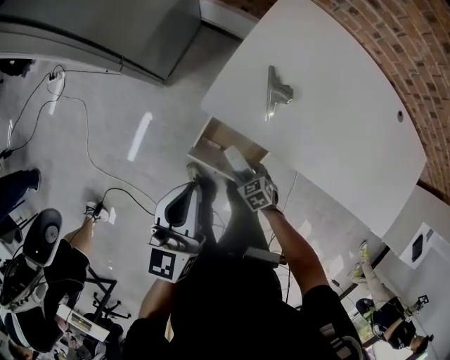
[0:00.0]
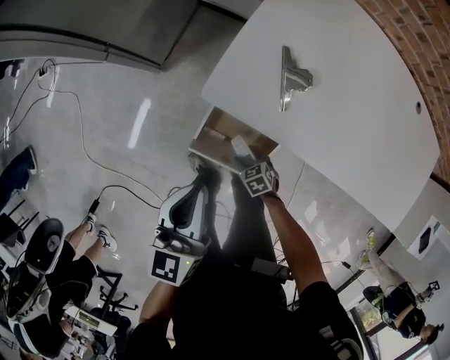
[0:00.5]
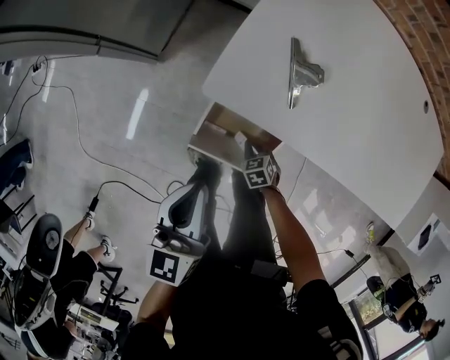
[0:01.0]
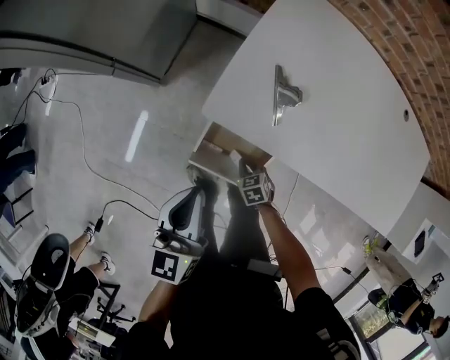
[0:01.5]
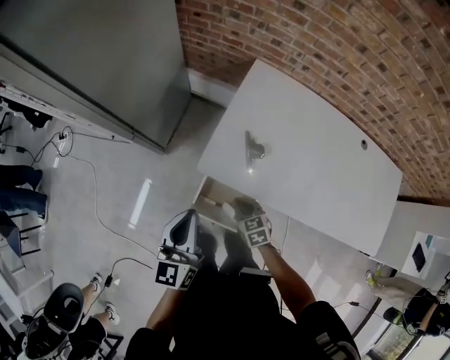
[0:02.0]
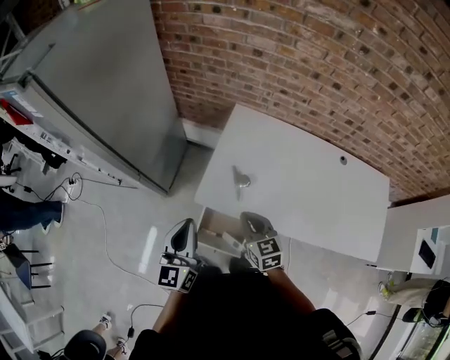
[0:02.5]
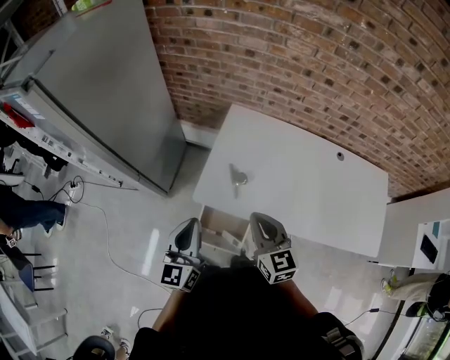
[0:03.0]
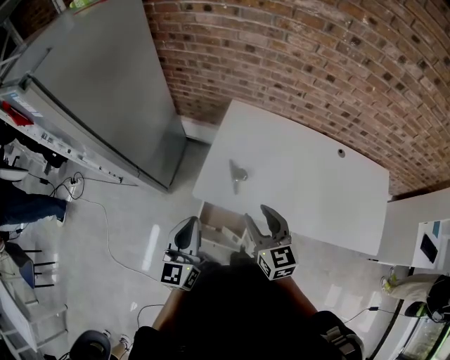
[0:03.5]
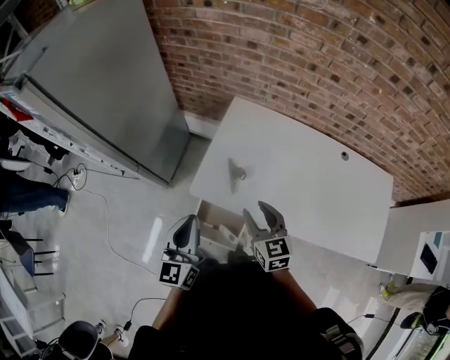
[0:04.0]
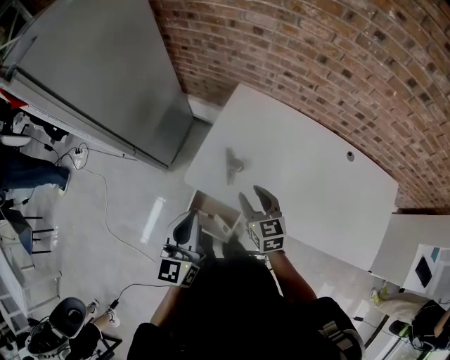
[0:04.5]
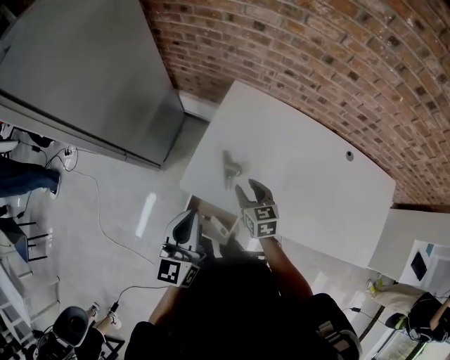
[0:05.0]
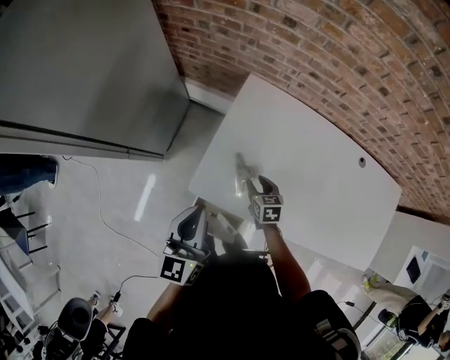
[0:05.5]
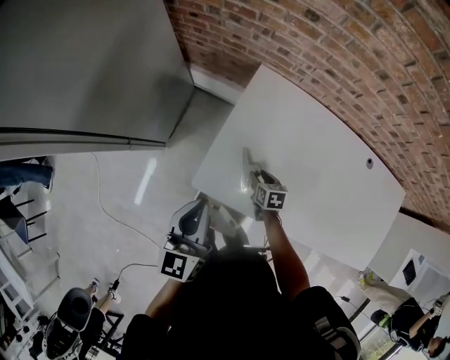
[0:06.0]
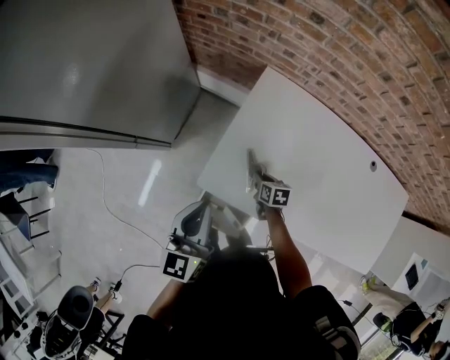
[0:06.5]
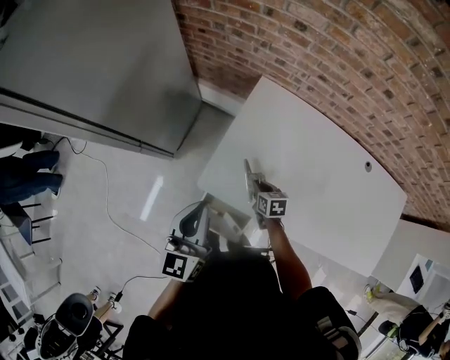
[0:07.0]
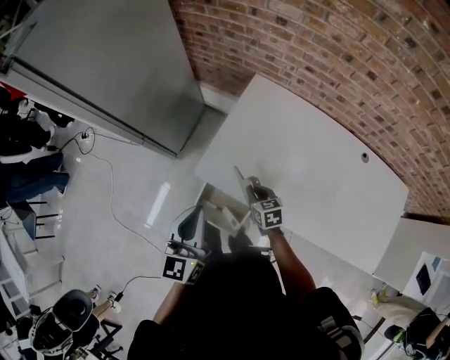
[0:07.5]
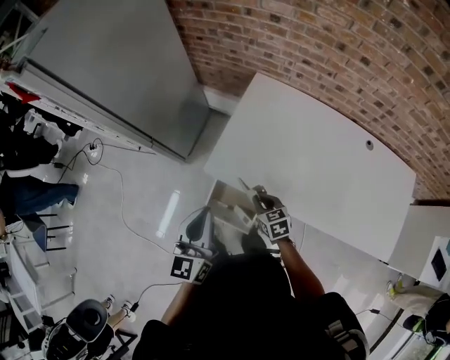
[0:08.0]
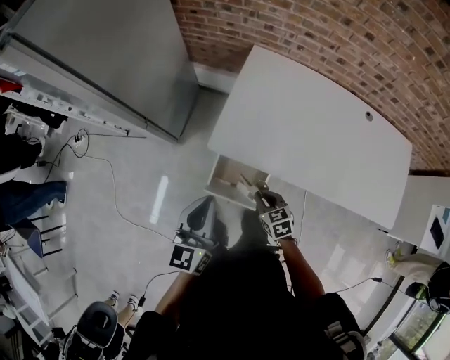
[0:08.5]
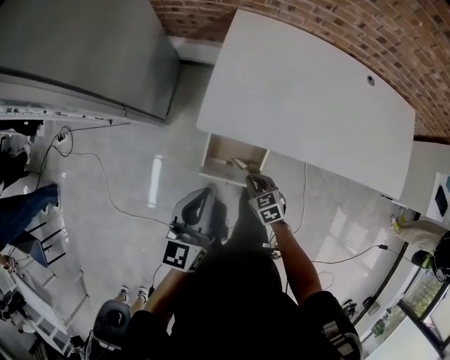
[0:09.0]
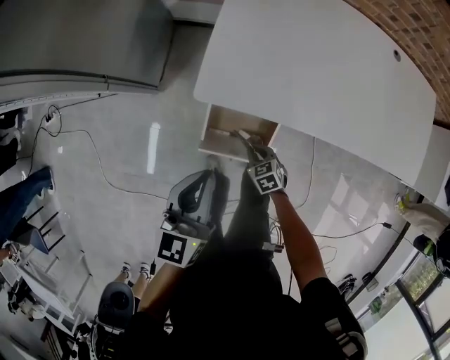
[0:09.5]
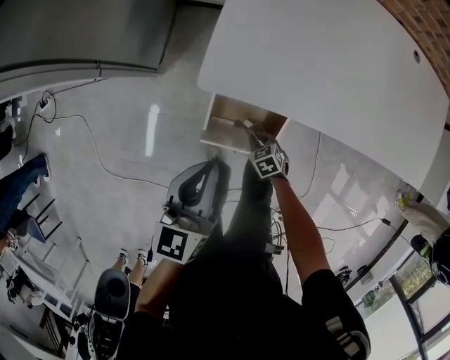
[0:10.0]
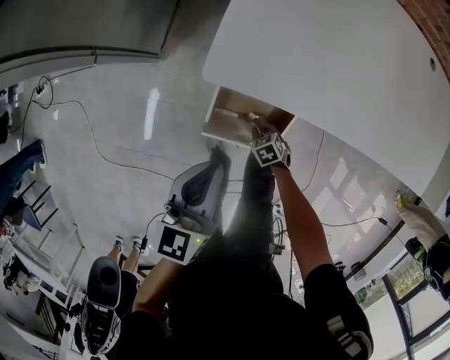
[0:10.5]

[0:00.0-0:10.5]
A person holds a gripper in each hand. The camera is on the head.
0:00.0 to 0:02.0: The right gripper shifts roughly 20 cm upward and forward, changes its angle by roughly 20 degrees, and closes, while the left gripper travels downward and back again, some 10 cm each way.
0:02.0 to 0:04.0: The left gripper shifts roughly 10 cm upward and to the right; the right gripper moves upward, about 25 cm, swivels some 30 degrees, and opens its fingers.
0:04.0 to 0:06.5: The right gripper moves downward and forward, approximately 35 cm, tilts its fingers about 30 degrees downward, and closes. Meanwhile the left gripper goes some 15 cm forward and downward.
0:06.5 to 0:08.5: The right gripper moves backward, upward and to the left, some 30 cm, and turns by some 30 degrees; the left gripper goes approximately 15 cm backward.
0:08.5 to 0:10.5: The right gripper moves downward, some 35 cm, and swivels some 30 degrees, while the left gripper is displaced downward by about 20 cm.

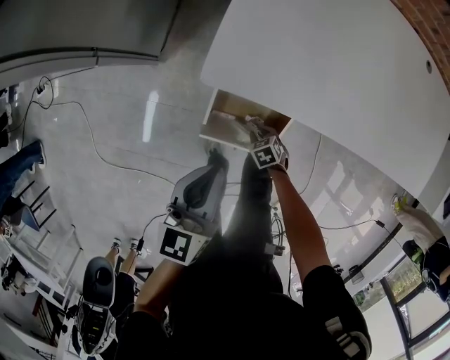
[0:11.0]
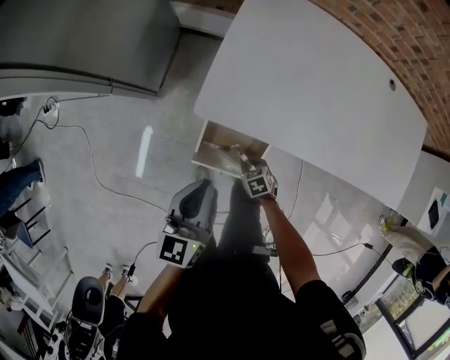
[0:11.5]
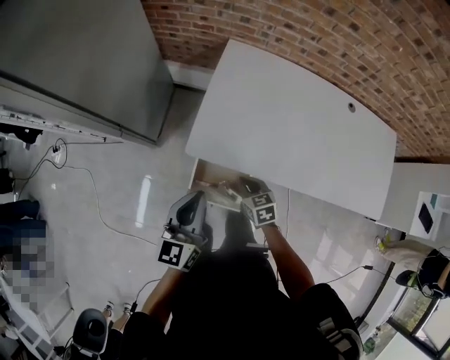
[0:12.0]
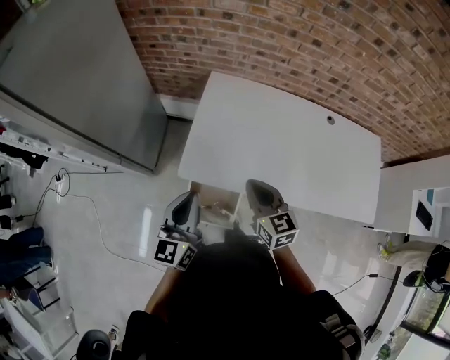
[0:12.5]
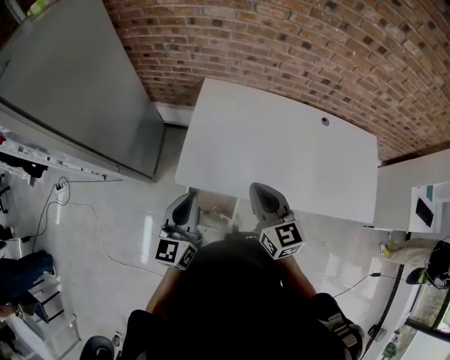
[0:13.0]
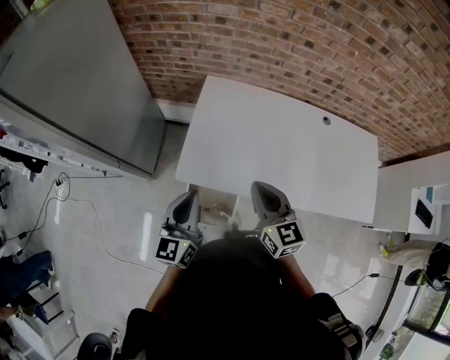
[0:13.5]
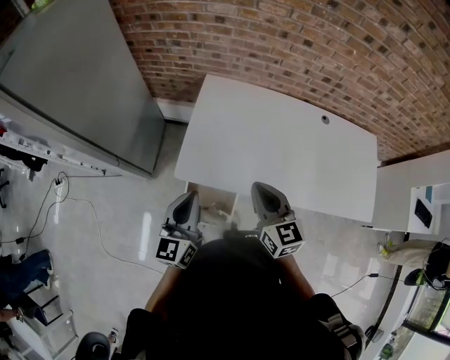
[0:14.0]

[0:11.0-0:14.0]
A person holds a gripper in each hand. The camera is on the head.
0:11.0 to 0:12.5: The left gripper goes approximately 25 cm upward, and swivels roughly 20 degrees, while the right gripper is displaced upward by some 50 cm, angles its fingers upward, by approximately 50 degrees, and closes up.
0:12.5 to 0:14.0: The right gripper moves upward, some 5 cm.

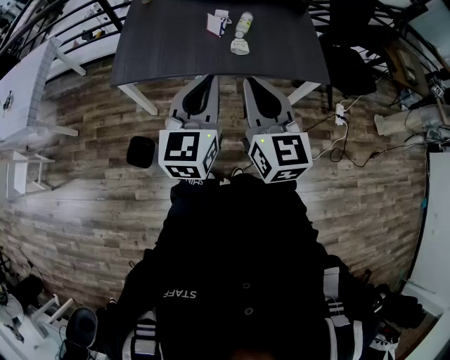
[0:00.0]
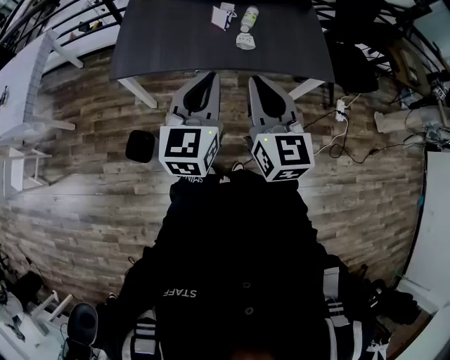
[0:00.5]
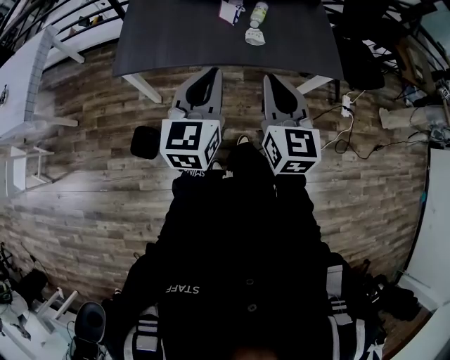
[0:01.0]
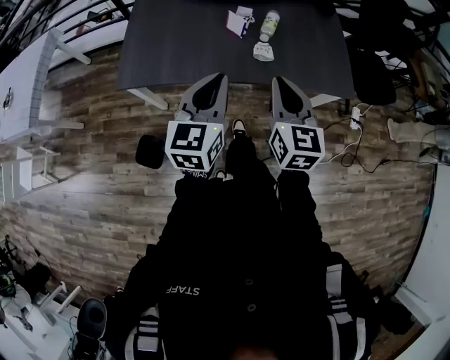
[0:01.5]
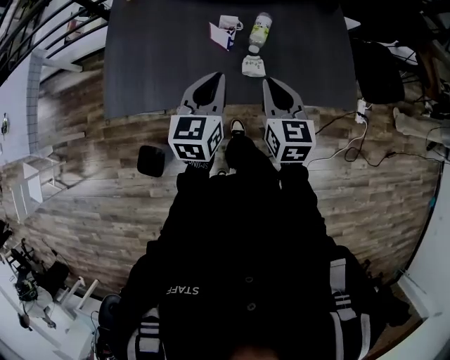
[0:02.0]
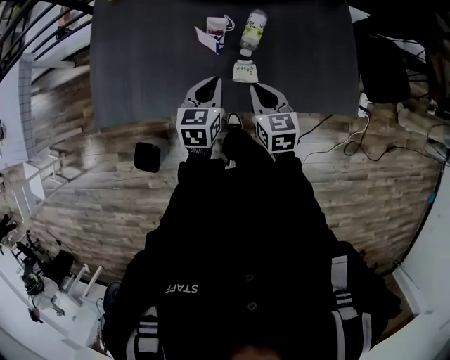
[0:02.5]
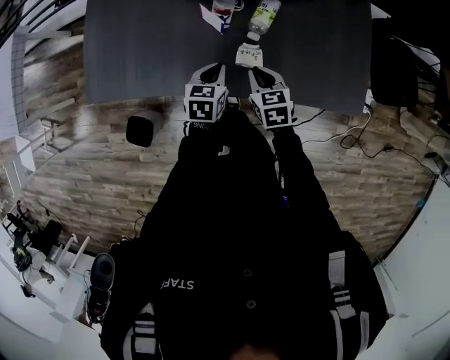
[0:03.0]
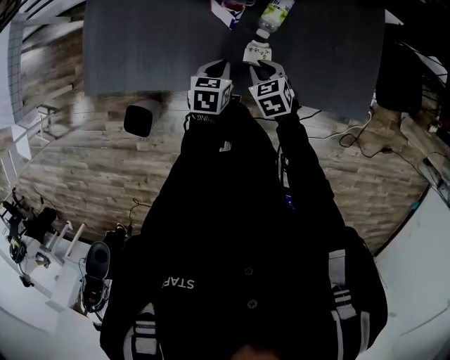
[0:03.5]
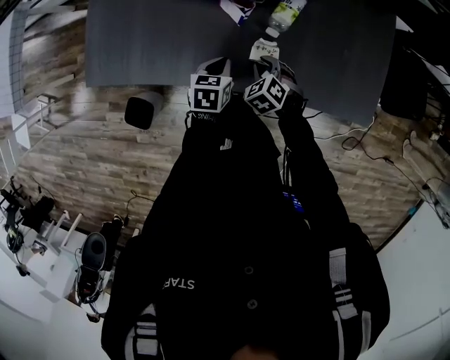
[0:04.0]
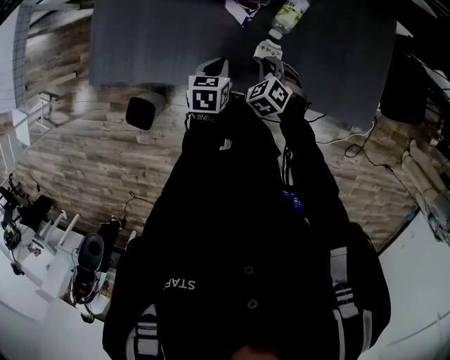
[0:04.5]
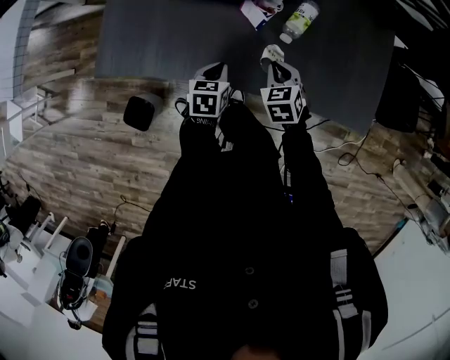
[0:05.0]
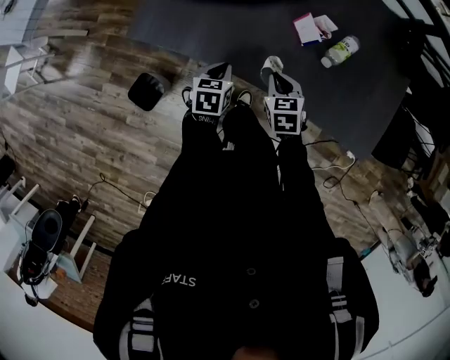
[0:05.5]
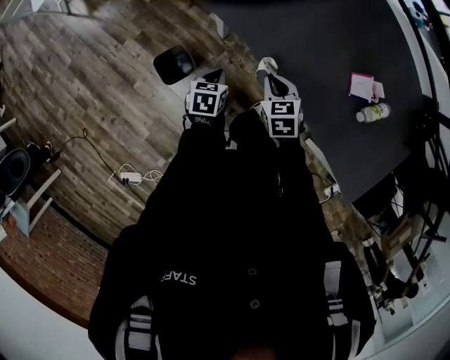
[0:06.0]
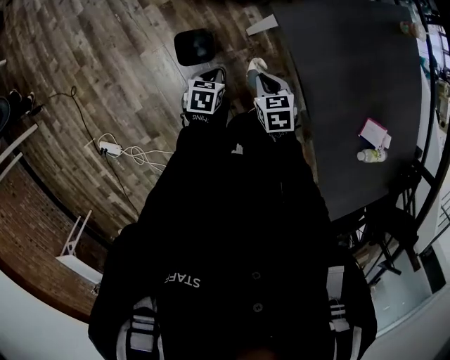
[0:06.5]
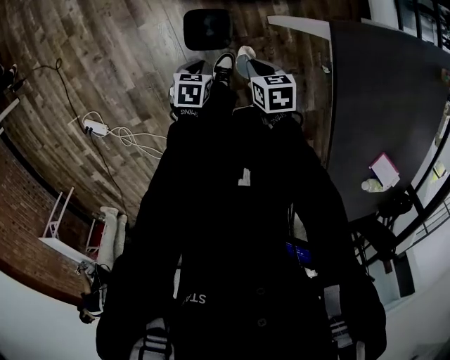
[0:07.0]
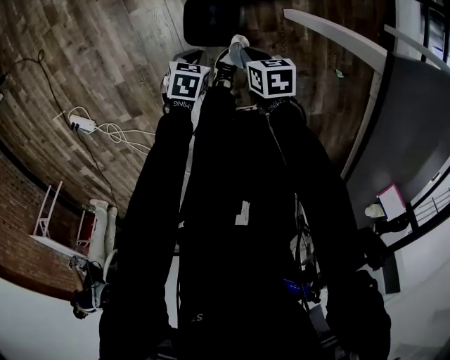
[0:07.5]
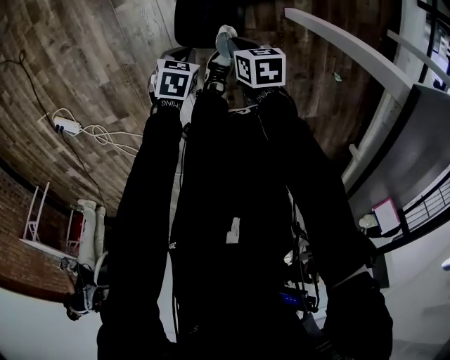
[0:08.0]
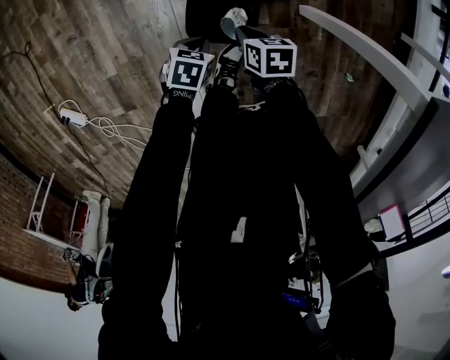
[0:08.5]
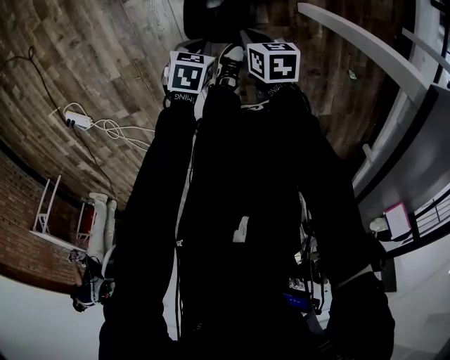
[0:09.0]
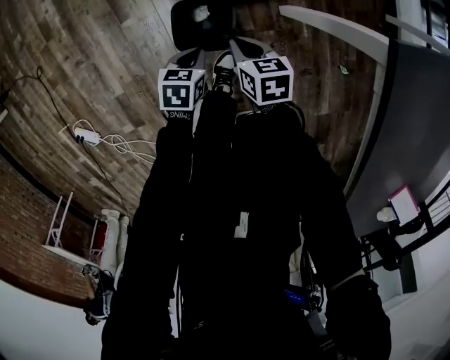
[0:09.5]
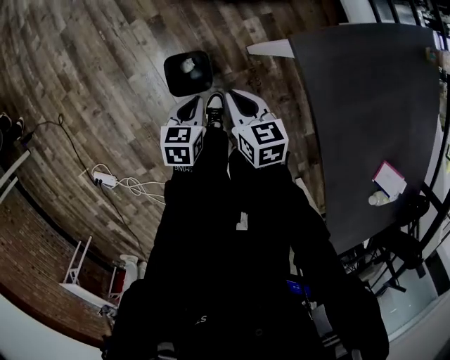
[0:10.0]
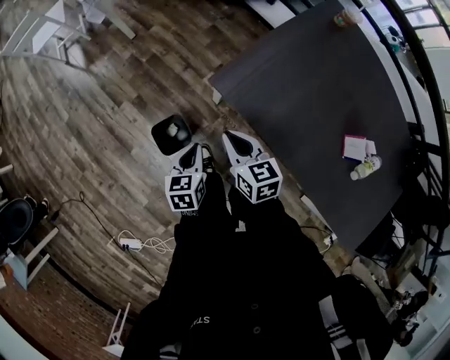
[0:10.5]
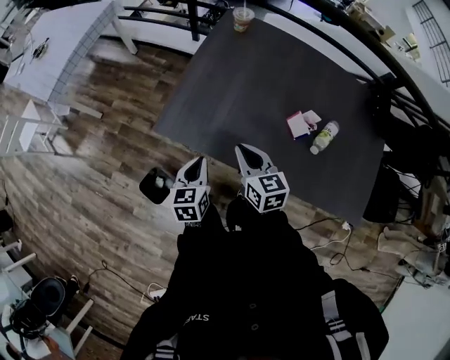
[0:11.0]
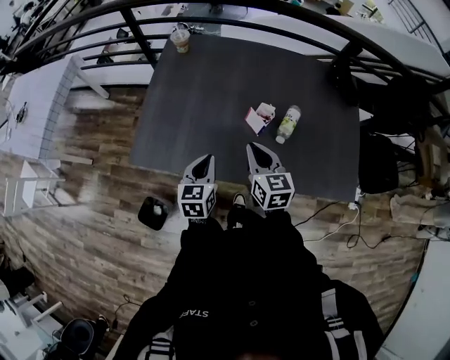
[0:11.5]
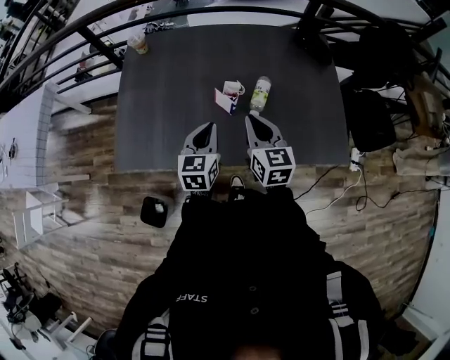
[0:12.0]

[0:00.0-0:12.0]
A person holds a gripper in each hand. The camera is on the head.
0:00.0 to 0:02.0: Both grippers move forward and downward, some 35 cm. The right gripper rotates roughly 20 degrees.
0:02.0 to 0:04.0: Both grippers move downward, some 30 cm. The left gripper tilts its fingers about 30 degrees downward. Meanwhile the right gripper angles its fingers downward, by some 40 degrees.
0:04.0 to 0:06.0: The left gripper changes place by approximately 40 cm, and rotates about 40 degrees, while the right gripper ends up some 40 cm from where it was, and changes its angle by some 20 degrees.
0:06.0 to 0:08.0: Both grippers move downward, about 50 cm. The left gripper turns by about 30 degrees. Meanwhile the right gripper changes its angle by approximately 40 degrees.
0:08.0 to 0:10.0: Both grippers travel together upward, some 30 cm. The left gripper changes its angle by roughly 20 degrees; the right gripper rotates roughly 30 degrees.
0:10.0 to 0:12.0: The pair of grippers is taken roughly 60 cm. The right gripper turns by approximately 80 degrees, while the left gripper swivels about 70 degrees.

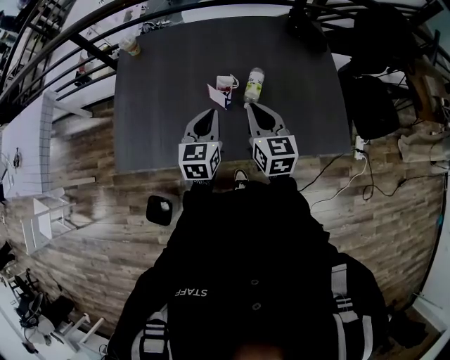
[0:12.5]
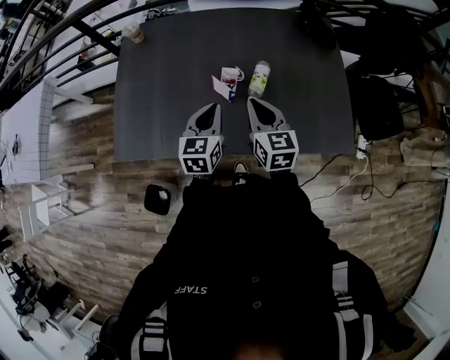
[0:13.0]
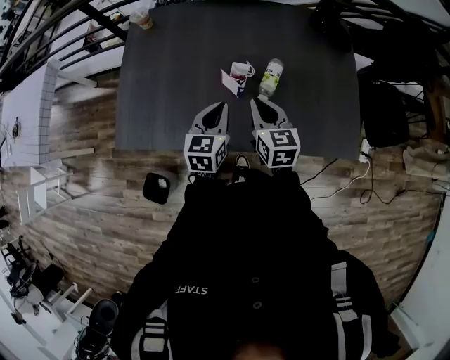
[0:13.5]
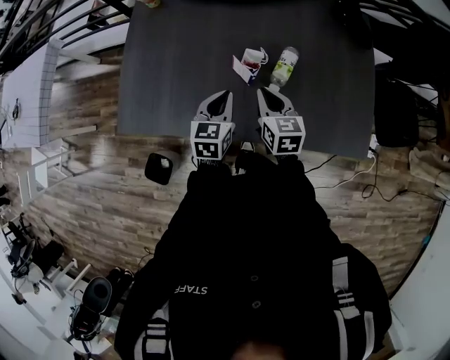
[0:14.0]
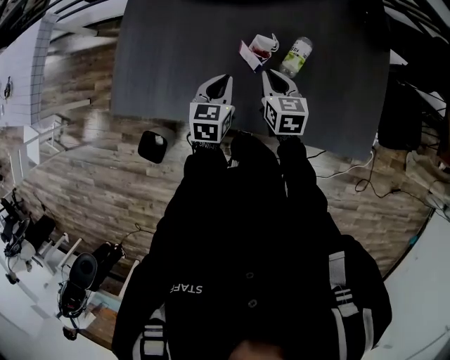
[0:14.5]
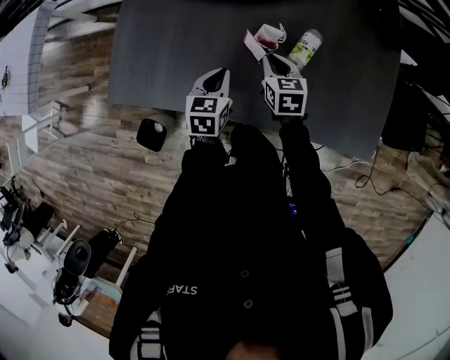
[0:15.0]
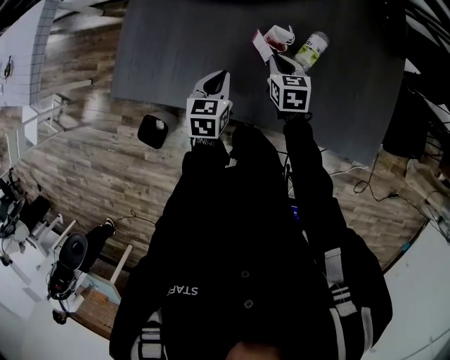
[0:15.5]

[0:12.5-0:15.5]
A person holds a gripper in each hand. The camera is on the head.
0:12.5 to 0:14.0: Both grippers travel together downward, approximately 10 cm.
0:14.0 to 0:15.5: The right gripper is displaced downward and forward by roughly 15 cm. The left gripper travels downward and to the left by some 10 cm.
